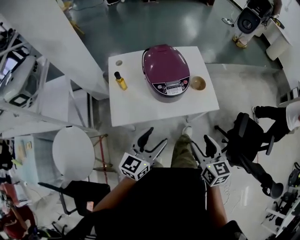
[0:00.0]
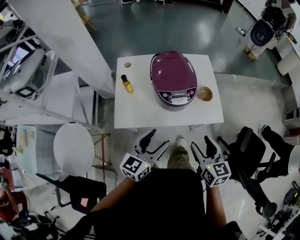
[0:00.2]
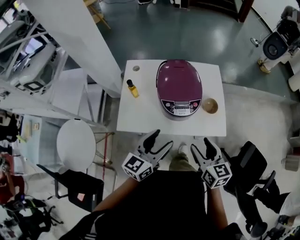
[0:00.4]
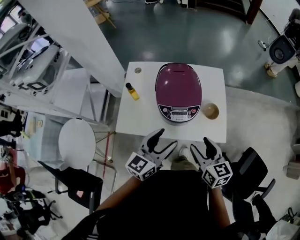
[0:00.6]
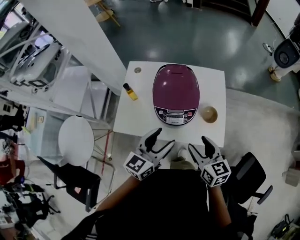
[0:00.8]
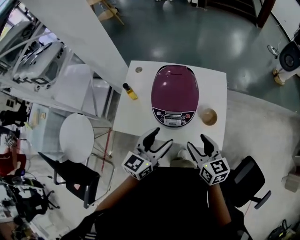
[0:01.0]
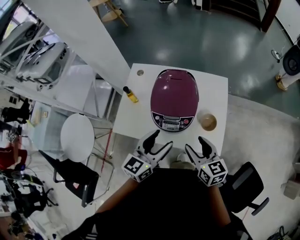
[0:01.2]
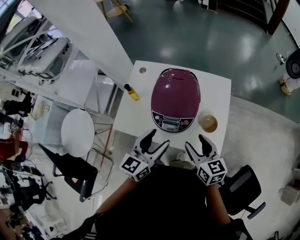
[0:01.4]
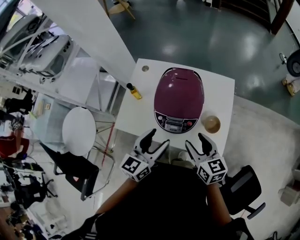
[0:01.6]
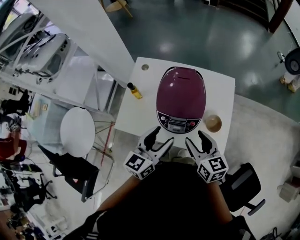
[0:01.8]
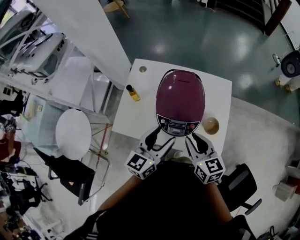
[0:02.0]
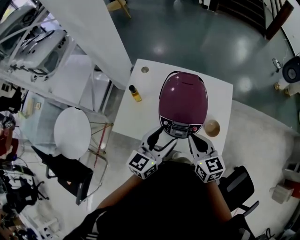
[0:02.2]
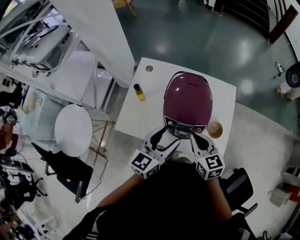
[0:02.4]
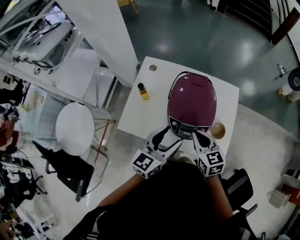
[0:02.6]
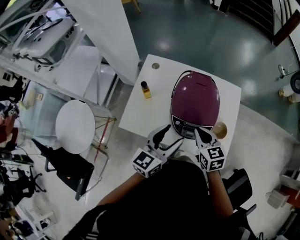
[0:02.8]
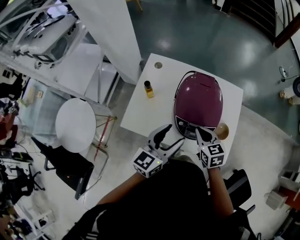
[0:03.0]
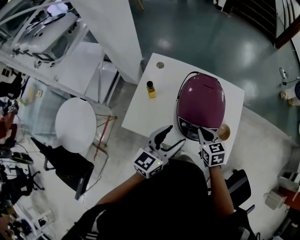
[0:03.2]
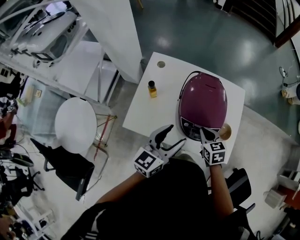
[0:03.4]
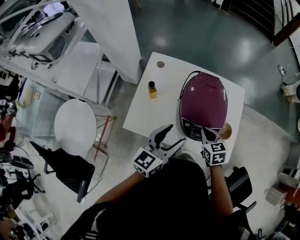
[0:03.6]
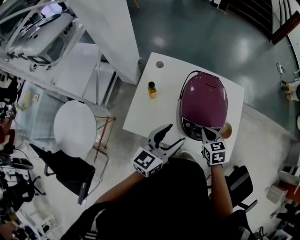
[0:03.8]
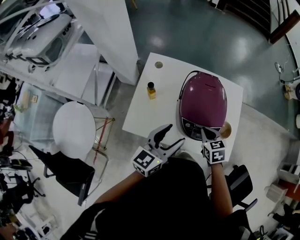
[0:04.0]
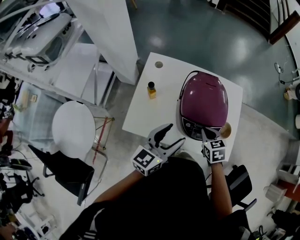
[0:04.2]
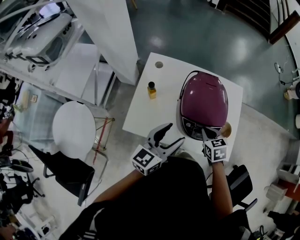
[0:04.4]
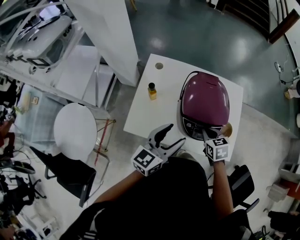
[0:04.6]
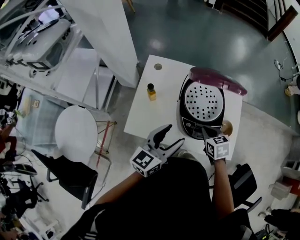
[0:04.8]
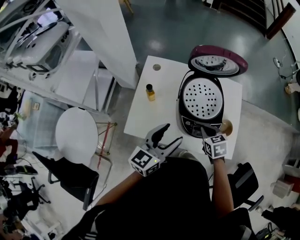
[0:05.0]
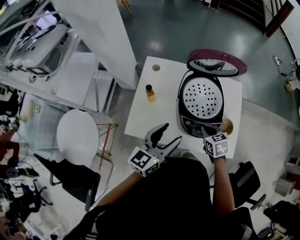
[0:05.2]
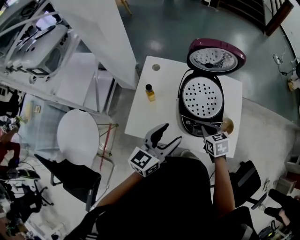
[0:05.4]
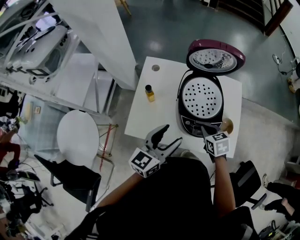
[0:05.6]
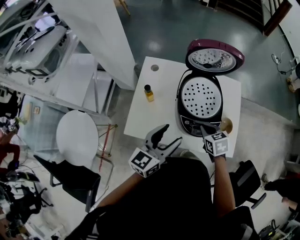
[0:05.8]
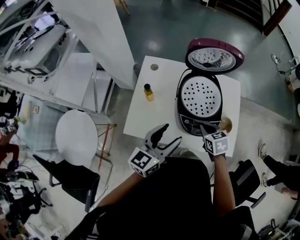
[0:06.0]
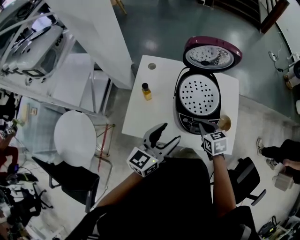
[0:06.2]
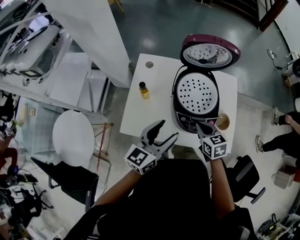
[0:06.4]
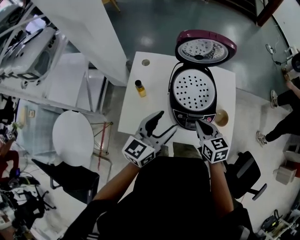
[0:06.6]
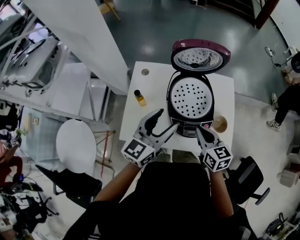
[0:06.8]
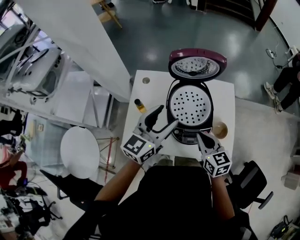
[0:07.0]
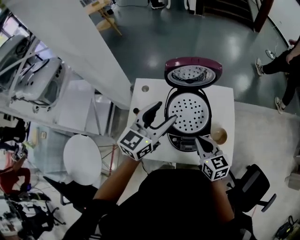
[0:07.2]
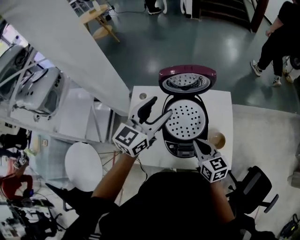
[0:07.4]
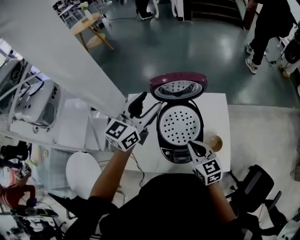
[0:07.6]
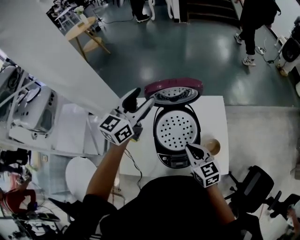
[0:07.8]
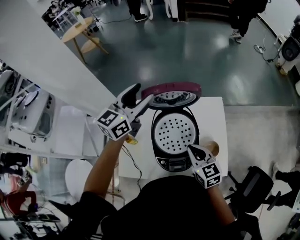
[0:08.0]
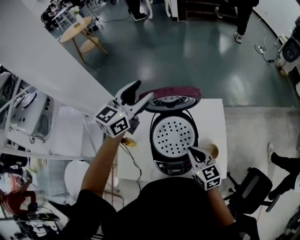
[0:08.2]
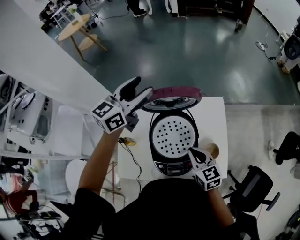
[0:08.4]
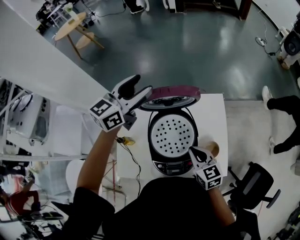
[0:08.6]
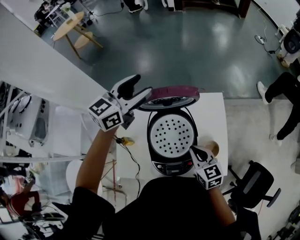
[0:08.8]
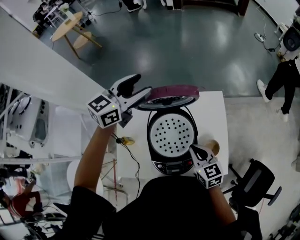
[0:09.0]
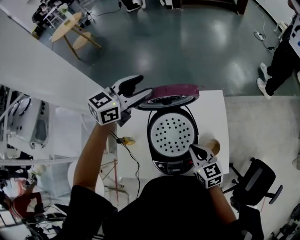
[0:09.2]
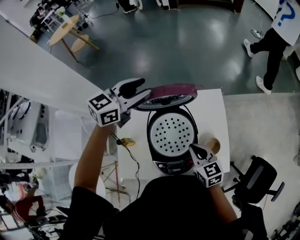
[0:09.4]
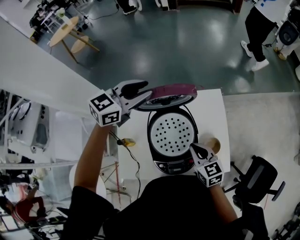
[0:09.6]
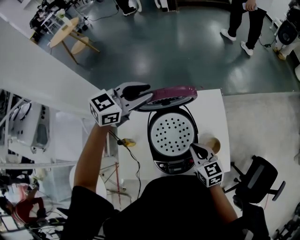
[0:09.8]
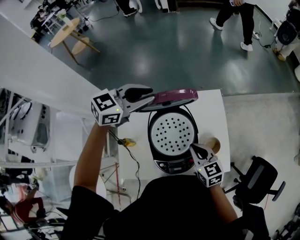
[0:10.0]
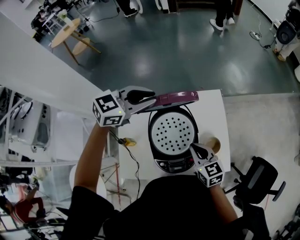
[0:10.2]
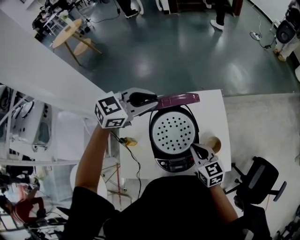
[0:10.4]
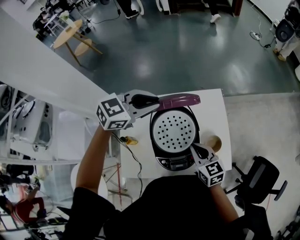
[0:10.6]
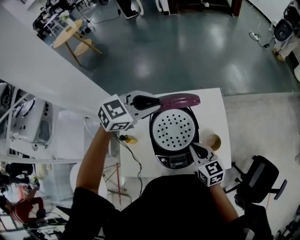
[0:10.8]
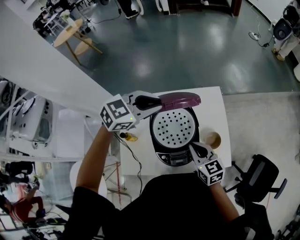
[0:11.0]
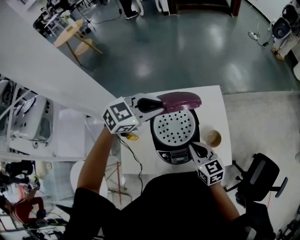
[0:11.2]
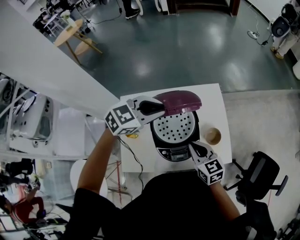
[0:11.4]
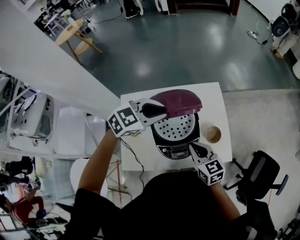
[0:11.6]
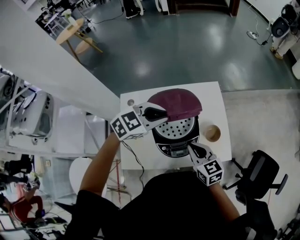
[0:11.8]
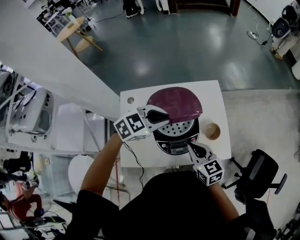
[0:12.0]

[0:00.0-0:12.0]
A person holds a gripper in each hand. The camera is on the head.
0:00.0 to 0:01.6: The left gripper ends up about 20 cm from where it was, and swivels about 30 degrees. The right gripper shifts by about 25 cm, and turns by approximately 30 degrees.
0:01.6 to 0:03.0: The right gripper heads to the left, forward and downward, covering roughly 15 cm, changes its angle by some 20 degrees, and closes, while the left gripper is displaced to the left by about 5 cm.
0:03.0 to 0:06.0: The grippers make only small movements.
0:06.0 to 0:07.6: The left gripper heads forward and upward, covering roughly 30 cm; the right gripper shifts roughly 10 cm upward, and rotates some 30 degrees.
0:07.6 to 0:09.0: The right gripper shifts some 5 cm forward. The left gripper moves forward, some 15 cm.
0:09.0 to 0:10.4: The left gripper moves backward and to the right, about 10 cm, swivels roughly 30 degrees, and closes its fingers.
0:10.4 to 0:12.0: The left gripper is displaced backward, downward and to the right by approximately 15 cm; the right gripper goes approximately 10 cm backward.

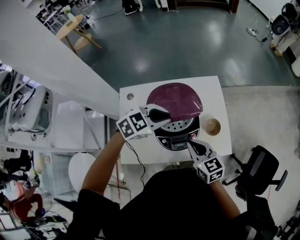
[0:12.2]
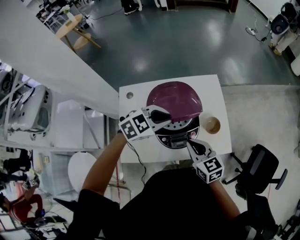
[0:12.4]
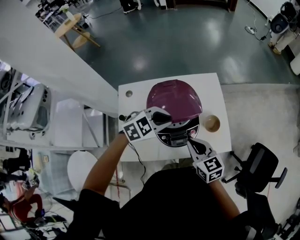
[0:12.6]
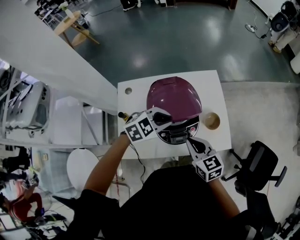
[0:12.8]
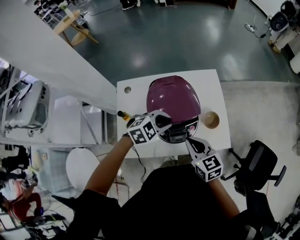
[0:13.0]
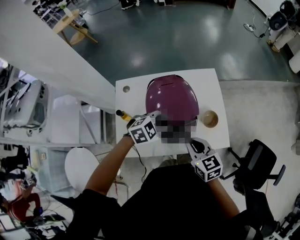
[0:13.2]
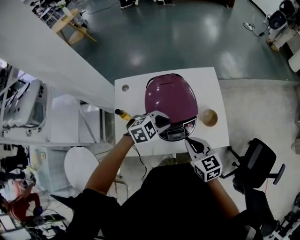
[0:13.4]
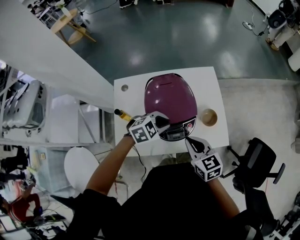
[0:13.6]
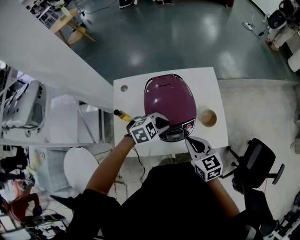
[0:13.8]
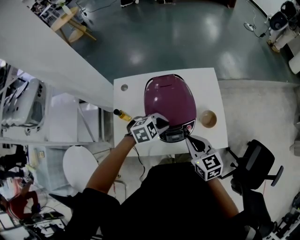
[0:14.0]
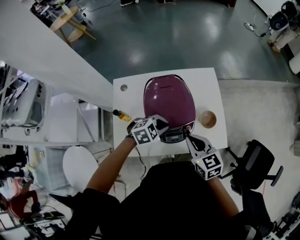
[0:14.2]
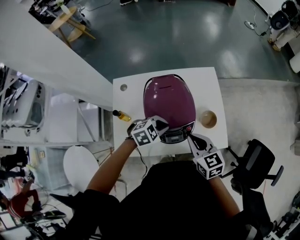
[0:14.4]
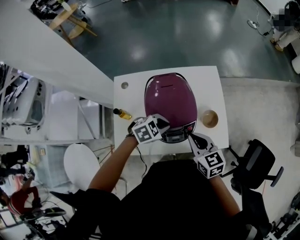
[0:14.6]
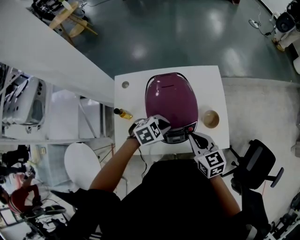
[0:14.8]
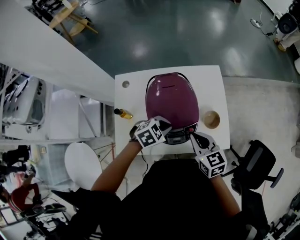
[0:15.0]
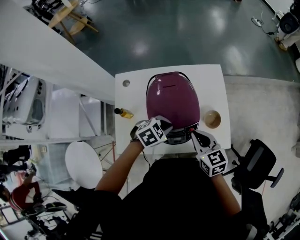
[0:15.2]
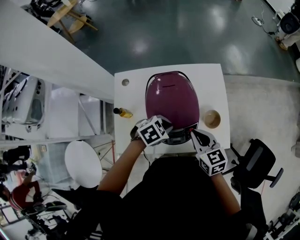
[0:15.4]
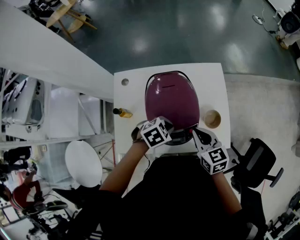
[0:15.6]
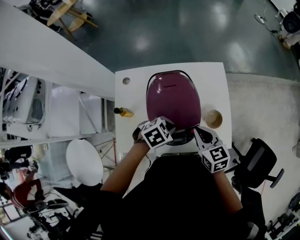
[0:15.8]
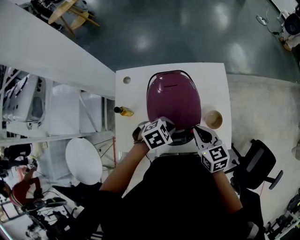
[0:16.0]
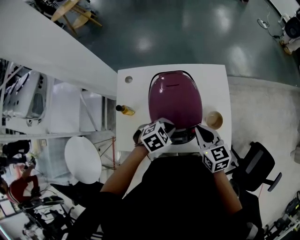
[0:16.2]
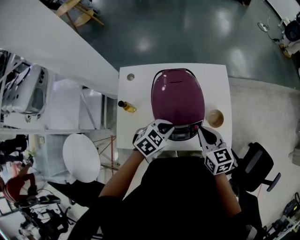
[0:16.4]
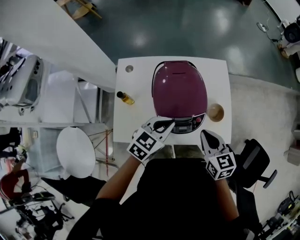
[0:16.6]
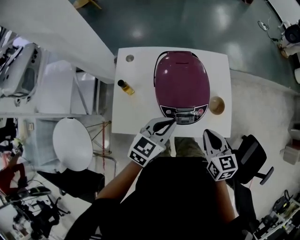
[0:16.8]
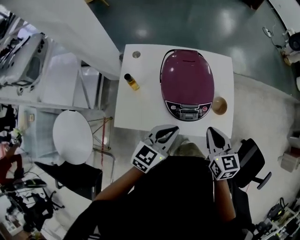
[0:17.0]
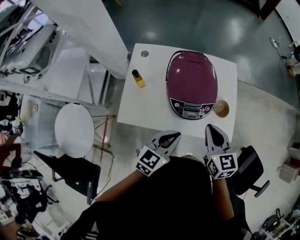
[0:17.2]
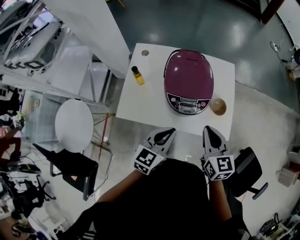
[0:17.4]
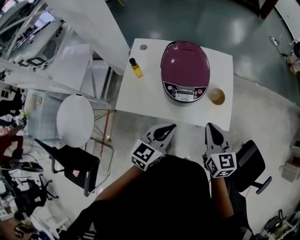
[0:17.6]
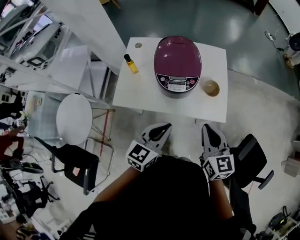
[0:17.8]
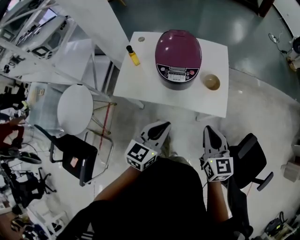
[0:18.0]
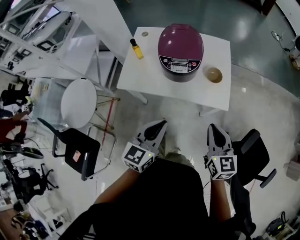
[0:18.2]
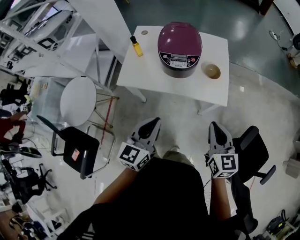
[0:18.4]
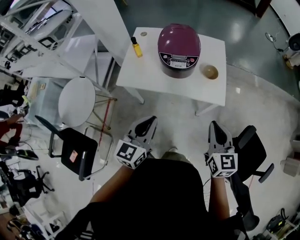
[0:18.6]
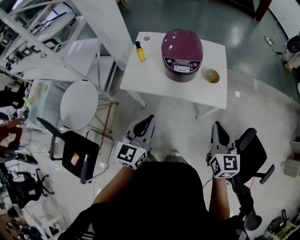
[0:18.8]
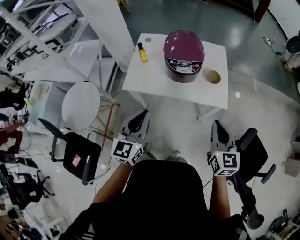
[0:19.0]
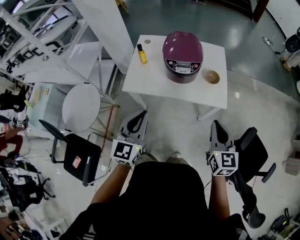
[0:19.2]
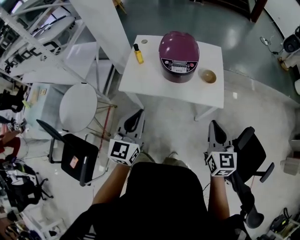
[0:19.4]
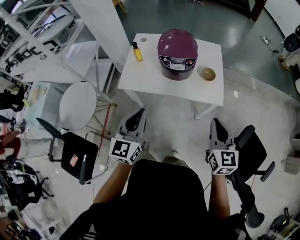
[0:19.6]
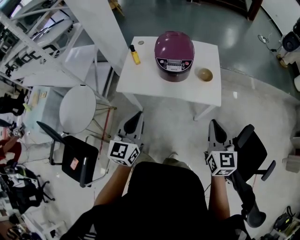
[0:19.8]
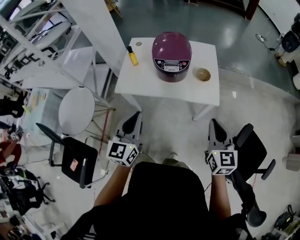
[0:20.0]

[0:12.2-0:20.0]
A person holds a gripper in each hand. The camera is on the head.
0:12.2 to 0:13.8: The left gripper shifts roughly 15 cm downward and backward.
0:13.8 to 0:15.4: The left gripper swivels about 20 degrees, while the right gripper moves forward, roughly 5 cm.
0:15.4 to 0:16.8: The left gripper is displaced upward and backward by roughly 10 cm, and tilts its fingers about 30 degrees upward. Meanwhile the right gripper shifts about 5 cm backward.
0:16.8 to 0:18.4: The left gripper goes roughly 30 cm backward, and turns by roughly 30 degrees. The right gripper is displaced backward and to the right by about 25 cm.
0:18.4 to 0:20.0: The right gripper shifts by about 5 cm, while the left gripper is displaced to the left by approximately 5 cm.

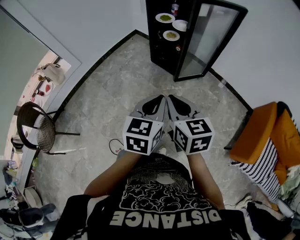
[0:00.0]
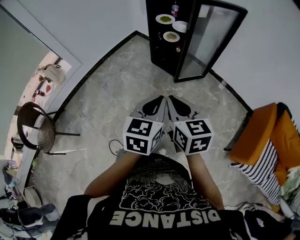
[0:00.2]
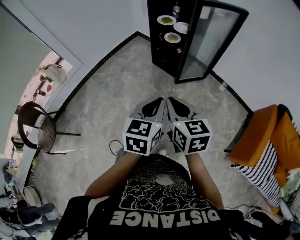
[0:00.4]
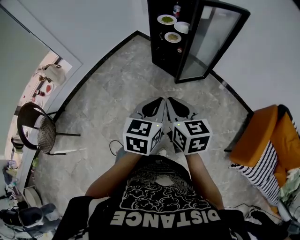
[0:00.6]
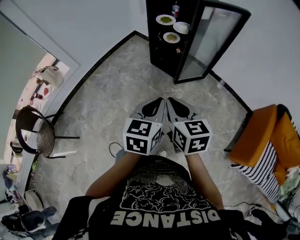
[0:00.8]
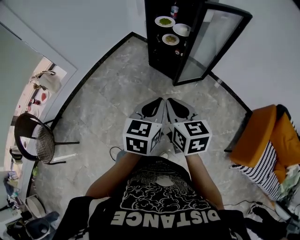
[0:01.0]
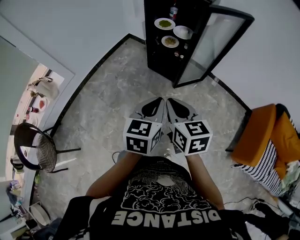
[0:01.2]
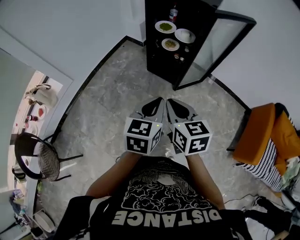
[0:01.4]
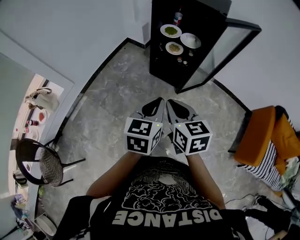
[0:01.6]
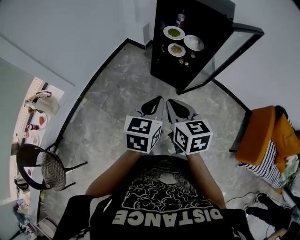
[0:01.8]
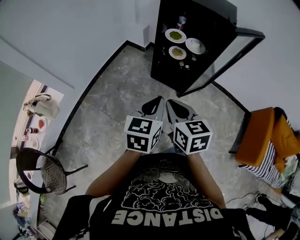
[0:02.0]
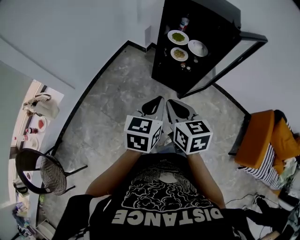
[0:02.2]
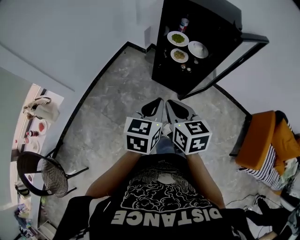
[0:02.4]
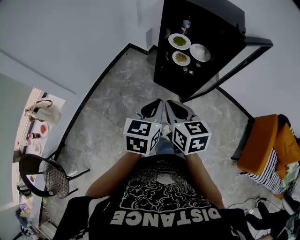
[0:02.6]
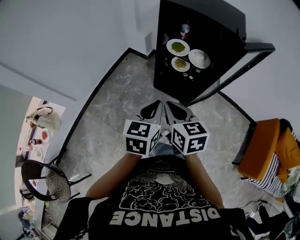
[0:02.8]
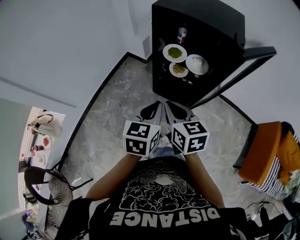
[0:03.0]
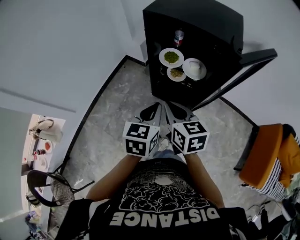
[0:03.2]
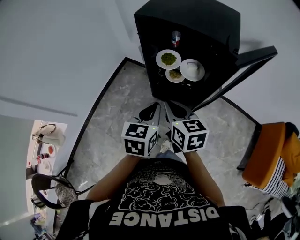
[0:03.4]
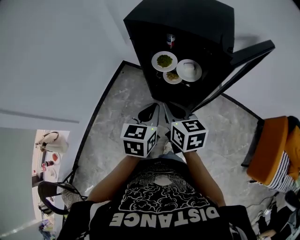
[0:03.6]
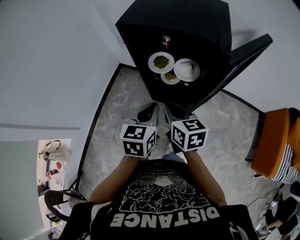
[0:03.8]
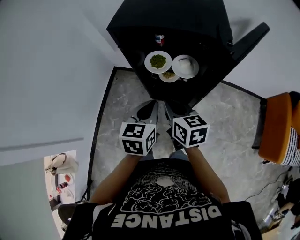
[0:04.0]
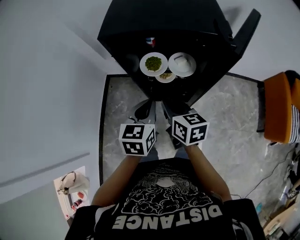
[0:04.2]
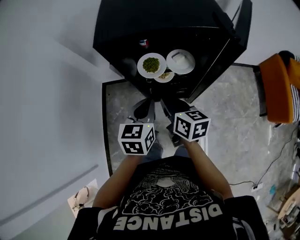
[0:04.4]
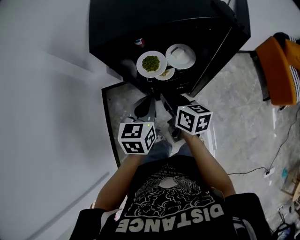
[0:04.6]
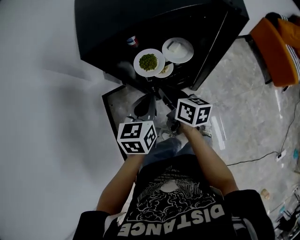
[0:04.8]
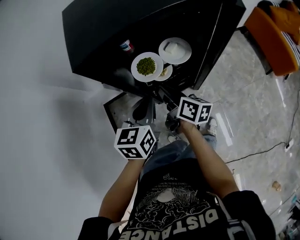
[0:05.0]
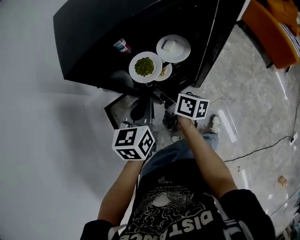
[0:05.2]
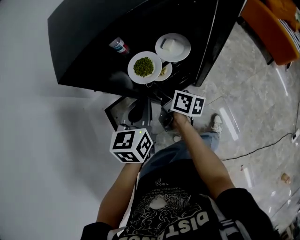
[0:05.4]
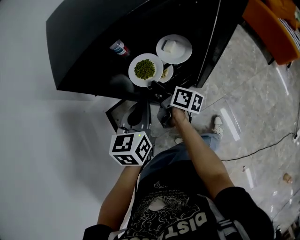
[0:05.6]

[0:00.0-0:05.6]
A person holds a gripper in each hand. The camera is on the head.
0:00.0 to 0:01.4: Both grippers move forward and to the left, roughly 15 cm.
0:01.4 to 0:02.8: Both grippers move forward and to the left, approximately 20 cm.
0:02.8 to 0:04.2: Both grippers move forward, about 20 cm. The right gripper swivels about 30 degrees. Meanwhile the left gripper swivels approximately 20 degrees.
0:04.2 to 0:05.6: The left gripper moves approximately 15 cm, and rotates approximately 30 degrees; the right gripper moves downward, some 15 cm, rotates around the line of its fingers by about 50 degrees, clockwise from behind, and opens.